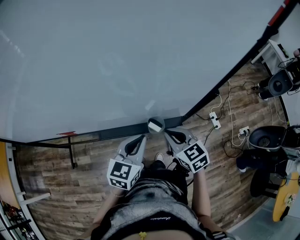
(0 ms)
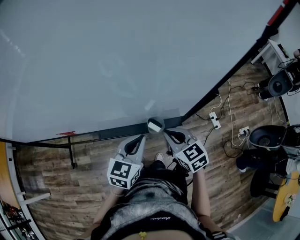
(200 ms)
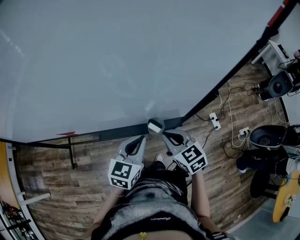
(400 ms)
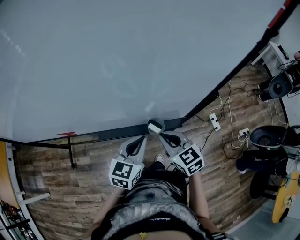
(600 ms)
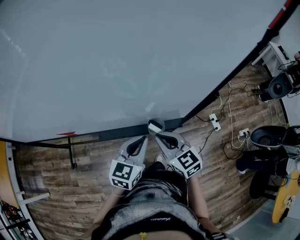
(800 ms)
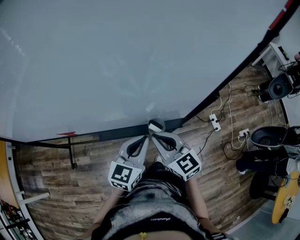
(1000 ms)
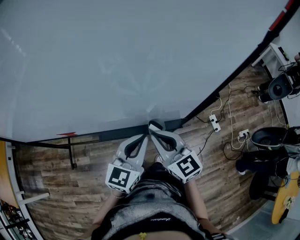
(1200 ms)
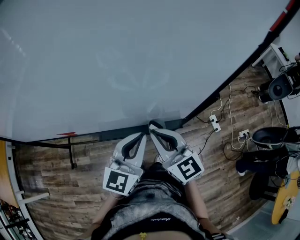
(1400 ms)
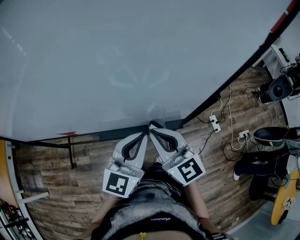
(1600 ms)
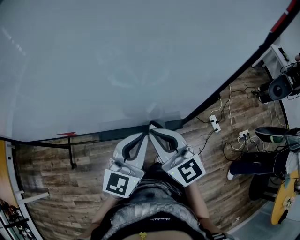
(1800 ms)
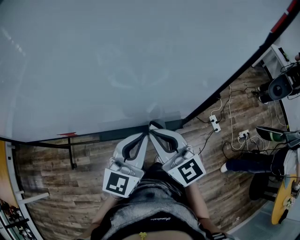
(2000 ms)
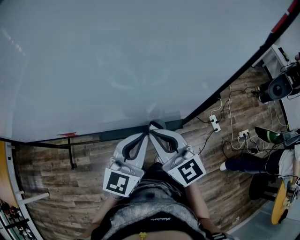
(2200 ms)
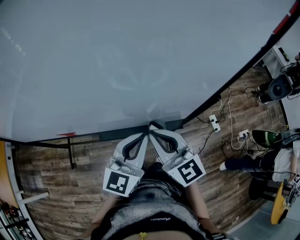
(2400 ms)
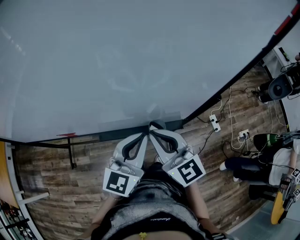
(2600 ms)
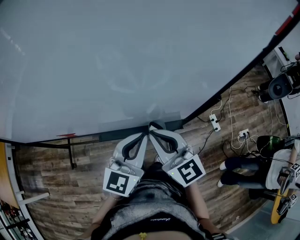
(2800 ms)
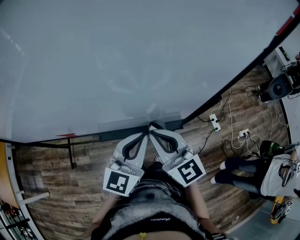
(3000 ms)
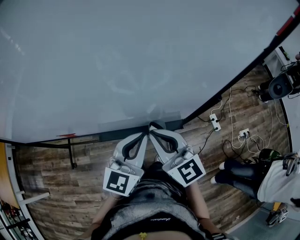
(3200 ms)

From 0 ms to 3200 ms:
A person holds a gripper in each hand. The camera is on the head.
From 0 ms to 1600 ms: The right gripper heads upward and to the left, covering approximately 15 cm, and turns by roughly 30 degrees, while the left gripper shifts approximately 10 cm upward.
From 1600 ms to 3200 ms: The grippers make only small movements.

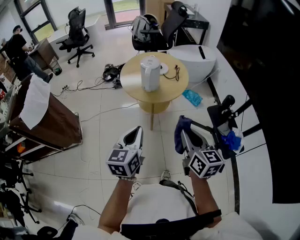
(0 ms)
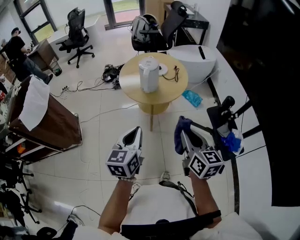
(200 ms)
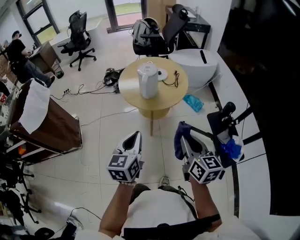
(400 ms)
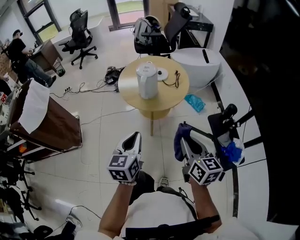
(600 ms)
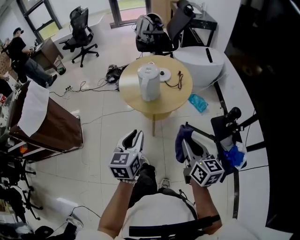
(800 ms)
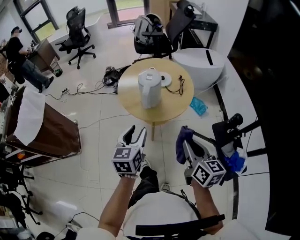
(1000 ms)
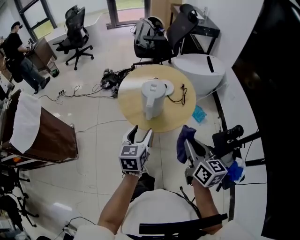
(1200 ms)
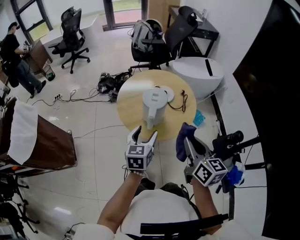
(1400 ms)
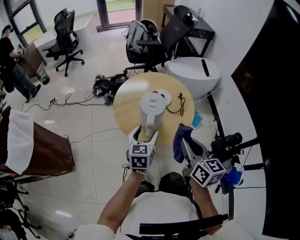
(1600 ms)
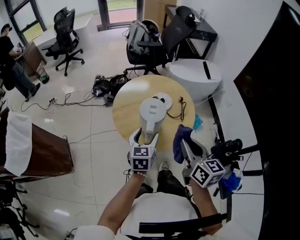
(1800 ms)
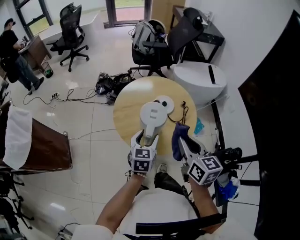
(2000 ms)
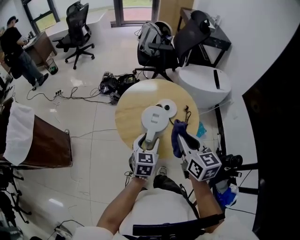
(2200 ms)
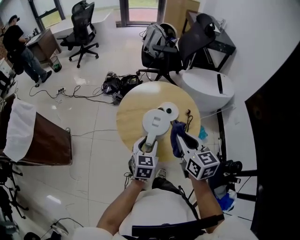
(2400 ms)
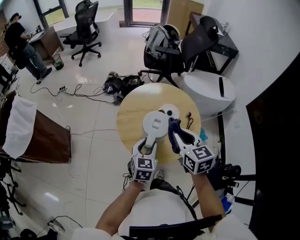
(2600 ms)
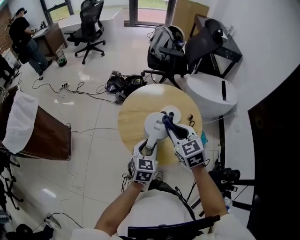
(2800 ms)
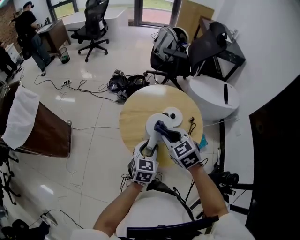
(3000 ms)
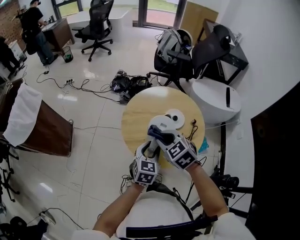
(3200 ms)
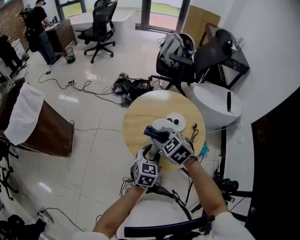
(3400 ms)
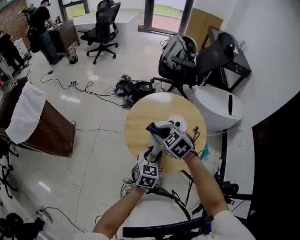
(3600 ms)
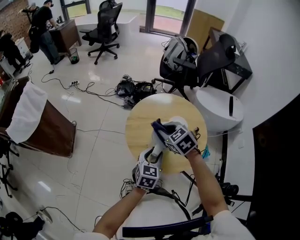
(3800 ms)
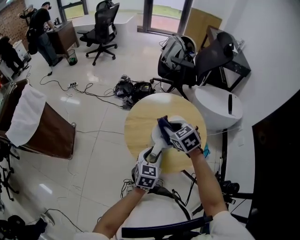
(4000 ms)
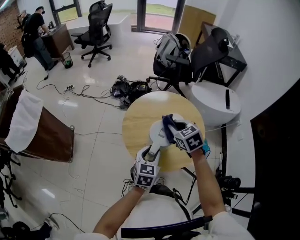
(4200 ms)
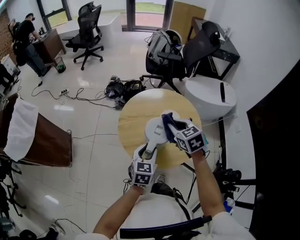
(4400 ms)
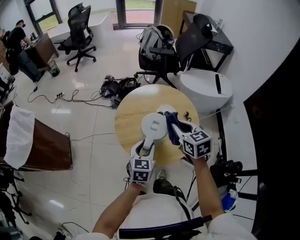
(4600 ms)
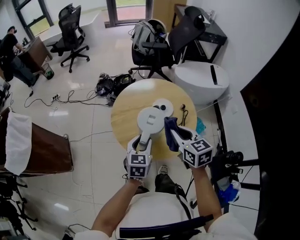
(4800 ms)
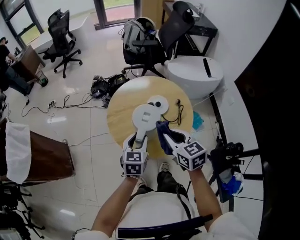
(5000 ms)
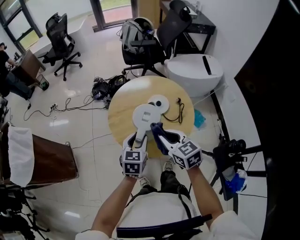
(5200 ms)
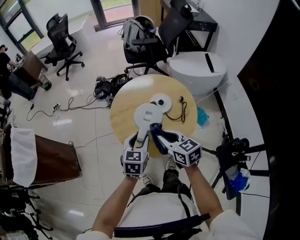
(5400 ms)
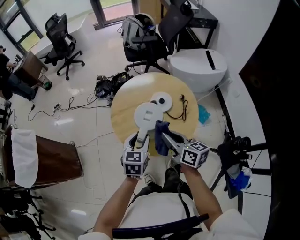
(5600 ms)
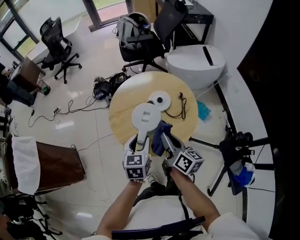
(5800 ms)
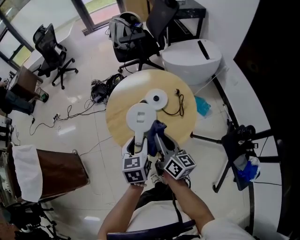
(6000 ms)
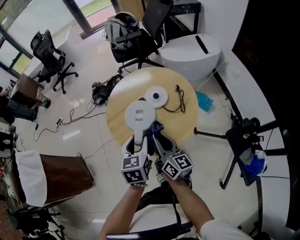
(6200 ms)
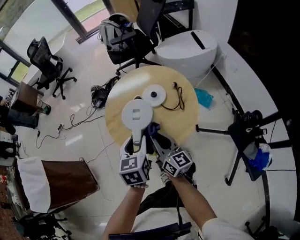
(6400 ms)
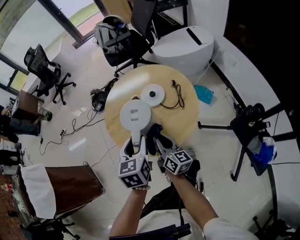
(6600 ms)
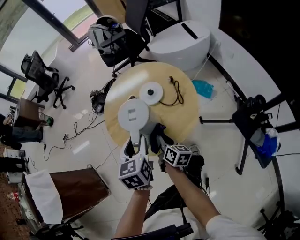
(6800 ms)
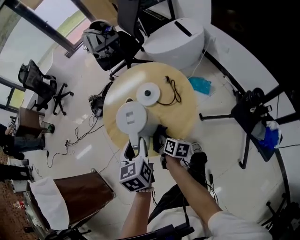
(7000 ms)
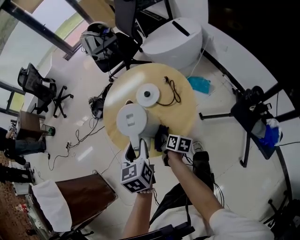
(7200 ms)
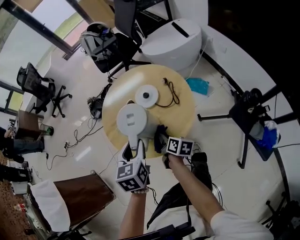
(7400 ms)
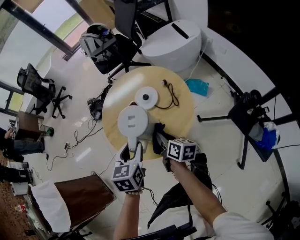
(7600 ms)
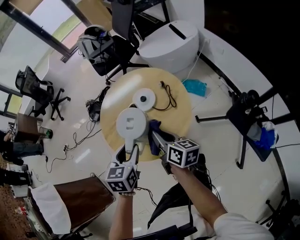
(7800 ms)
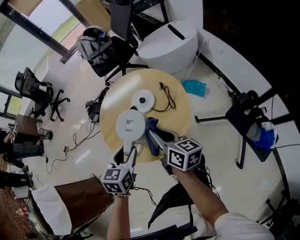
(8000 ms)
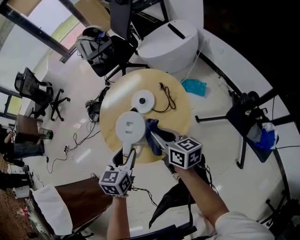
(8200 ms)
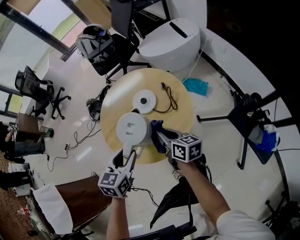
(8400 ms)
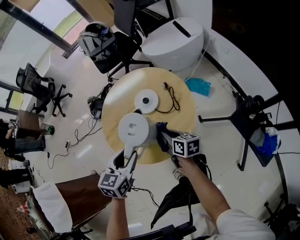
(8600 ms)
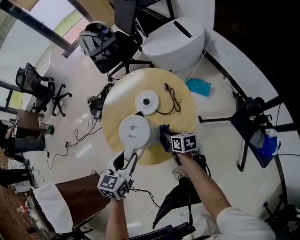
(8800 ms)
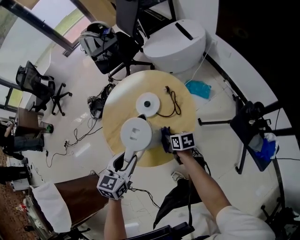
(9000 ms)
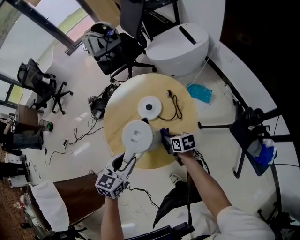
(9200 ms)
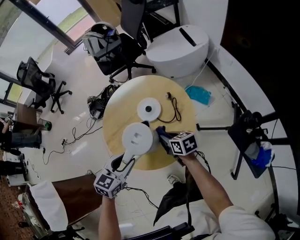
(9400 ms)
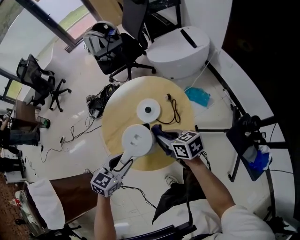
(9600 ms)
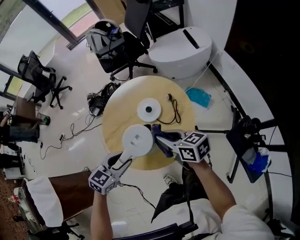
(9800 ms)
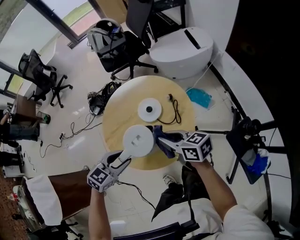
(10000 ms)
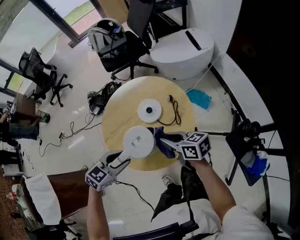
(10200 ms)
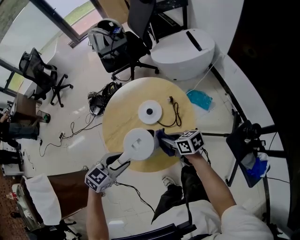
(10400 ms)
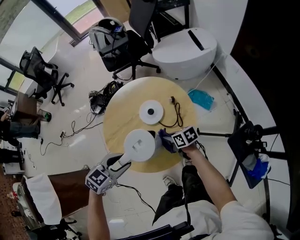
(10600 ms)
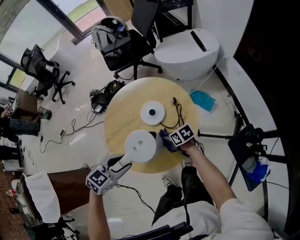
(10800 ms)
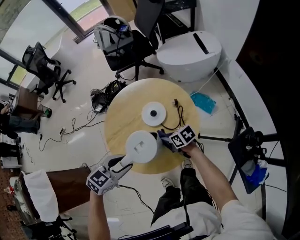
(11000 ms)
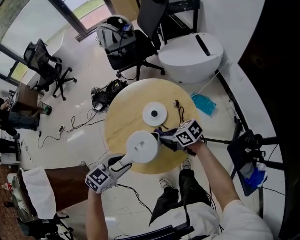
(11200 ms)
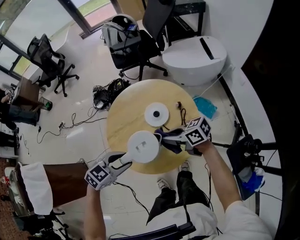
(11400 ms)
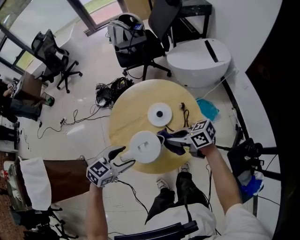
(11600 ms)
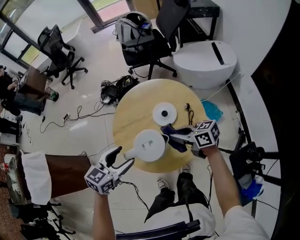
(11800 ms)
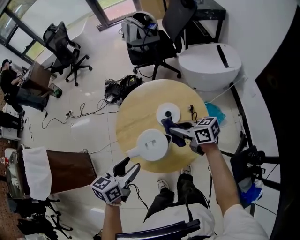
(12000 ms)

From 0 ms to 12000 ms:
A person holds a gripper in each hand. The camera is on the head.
From 0 ms to 1600 ms: The two grippers go roughly 30 cm forward. The left gripper opens its fingers.
From 1600 ms to 3000 ms: The left gripper ends up some 5 cm from where it was, and closes up, while the right gripper moves forward, to the left and downward, roughly 20 cm, and swivels some 60 degrees.
From 3000 ms to 4400 ms: The right gripper heads to the right and forward, covering roughly 10 cm.
From 4400 ms to 6000 ms: The right gripper shifts about 10 cm backward, and angles its fingers upward, by approximately 40 degrees.
From 6000 ms to 7600 ms: The right gripper is displaced downward by roughly 10 cm, and changes its angle by about 30 degrees.
From 7600 ms to 9000 ms: The left gripper turns by approximately 20 degrees, while the right gripper travels downward by approximately 10 cm, and turns by approximately 30 degrees.
From 9000 ms to 10400 ms: The right gripper travels upward by roughly 10 cm, and turns by about 30 degrees. The left gripper changes its angle by about 20 degrees.
From 10400 ms to 12000 ms: The left gripper shifts by about 5 cm, and turns by about 50 degrees; the right gripper shifts approximately 10 cm upward, and changes its angle by some 20 degrees.

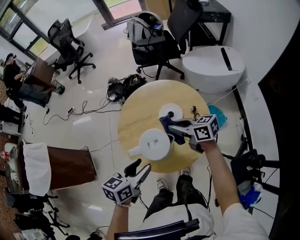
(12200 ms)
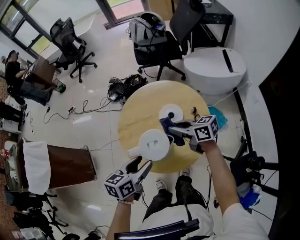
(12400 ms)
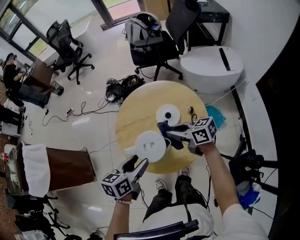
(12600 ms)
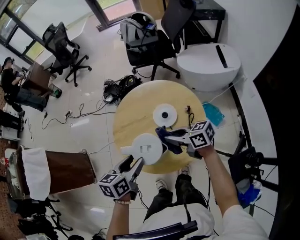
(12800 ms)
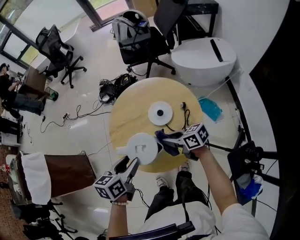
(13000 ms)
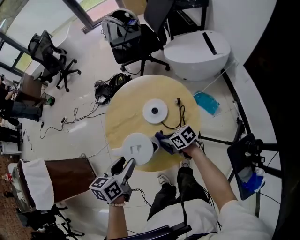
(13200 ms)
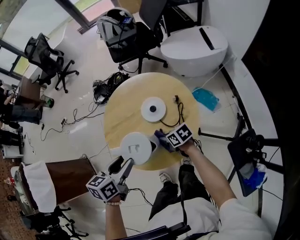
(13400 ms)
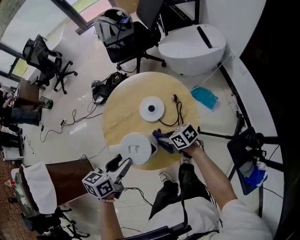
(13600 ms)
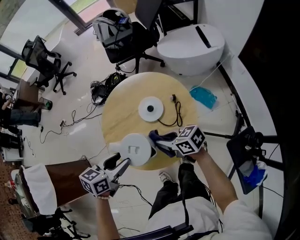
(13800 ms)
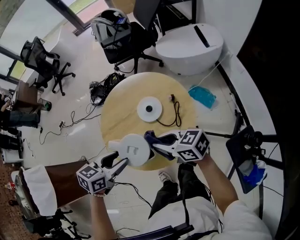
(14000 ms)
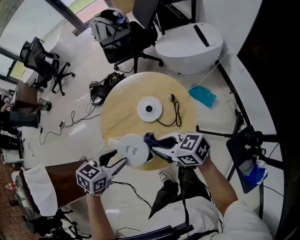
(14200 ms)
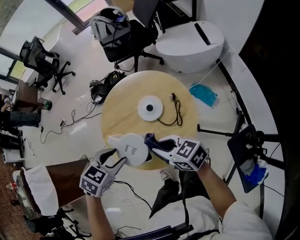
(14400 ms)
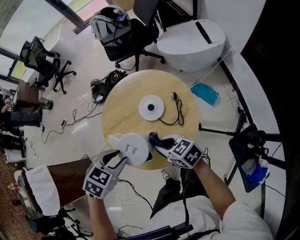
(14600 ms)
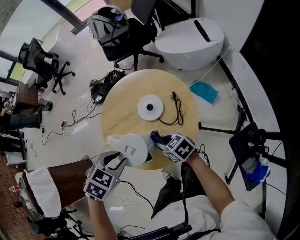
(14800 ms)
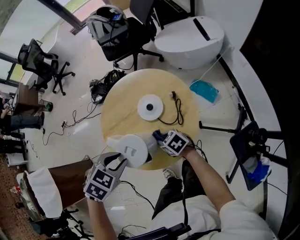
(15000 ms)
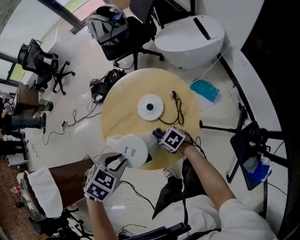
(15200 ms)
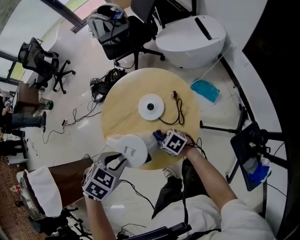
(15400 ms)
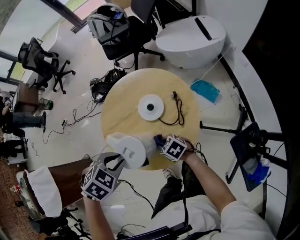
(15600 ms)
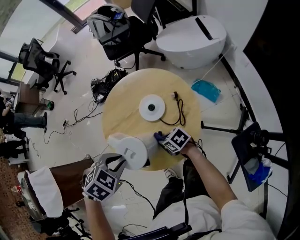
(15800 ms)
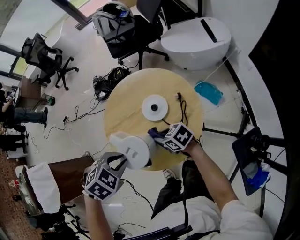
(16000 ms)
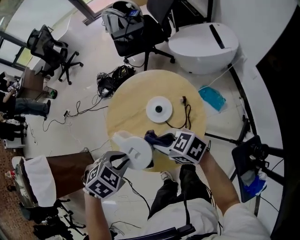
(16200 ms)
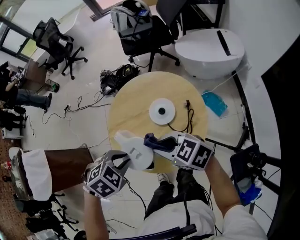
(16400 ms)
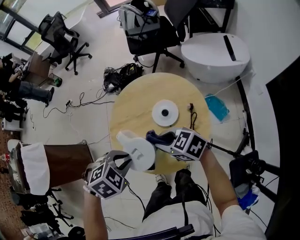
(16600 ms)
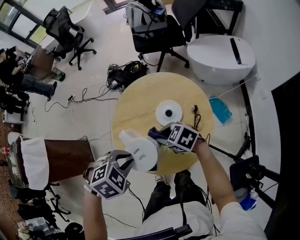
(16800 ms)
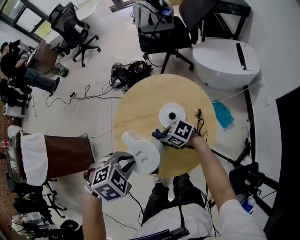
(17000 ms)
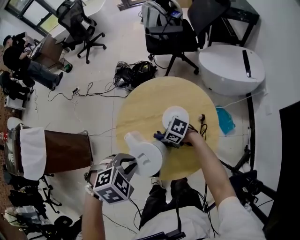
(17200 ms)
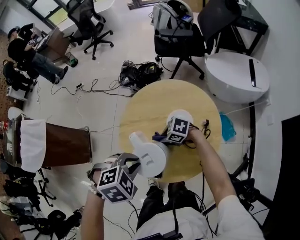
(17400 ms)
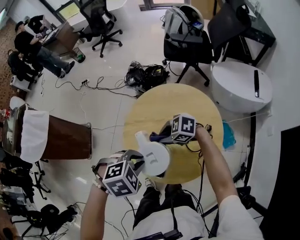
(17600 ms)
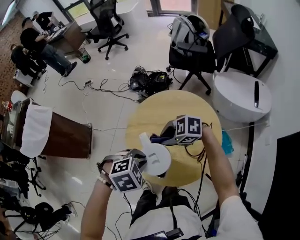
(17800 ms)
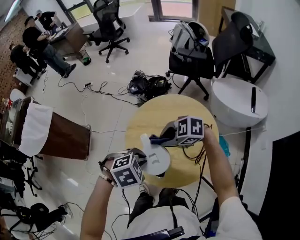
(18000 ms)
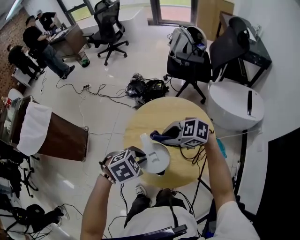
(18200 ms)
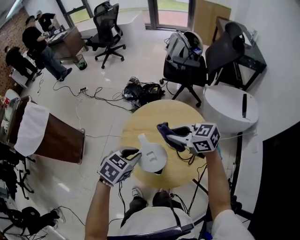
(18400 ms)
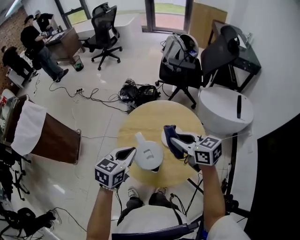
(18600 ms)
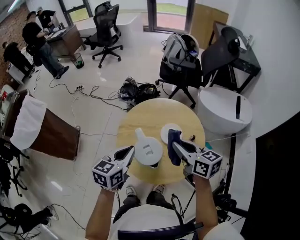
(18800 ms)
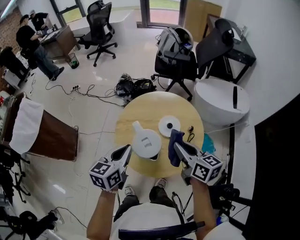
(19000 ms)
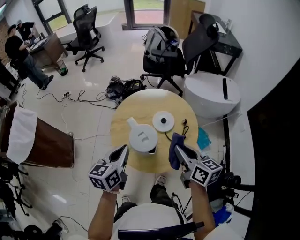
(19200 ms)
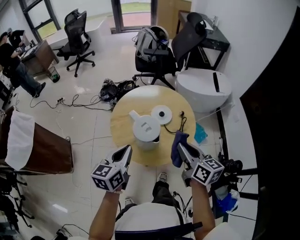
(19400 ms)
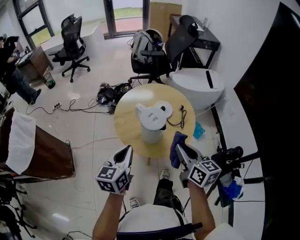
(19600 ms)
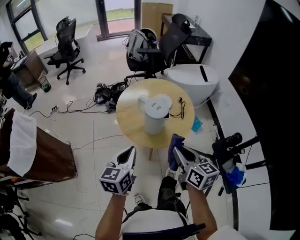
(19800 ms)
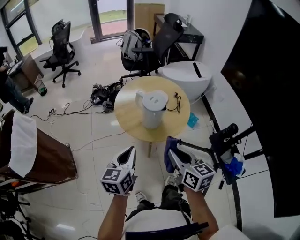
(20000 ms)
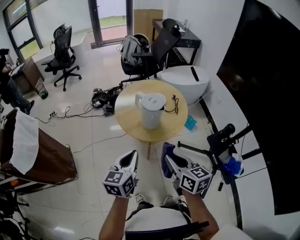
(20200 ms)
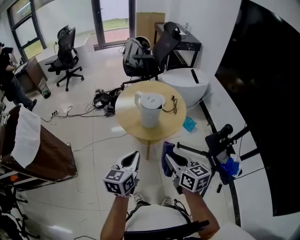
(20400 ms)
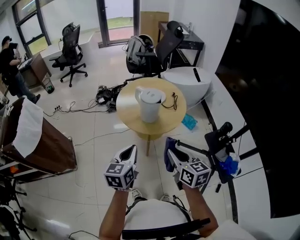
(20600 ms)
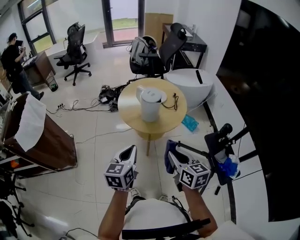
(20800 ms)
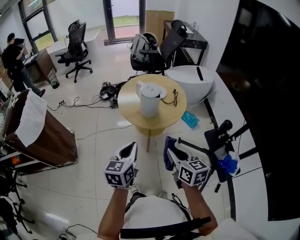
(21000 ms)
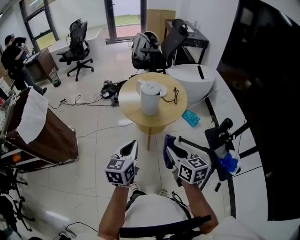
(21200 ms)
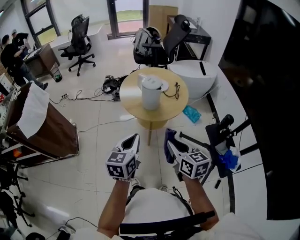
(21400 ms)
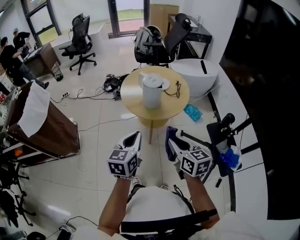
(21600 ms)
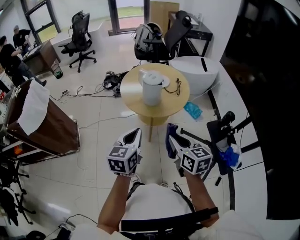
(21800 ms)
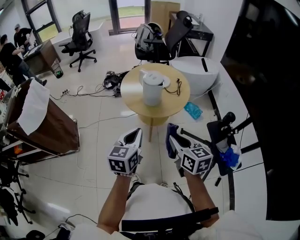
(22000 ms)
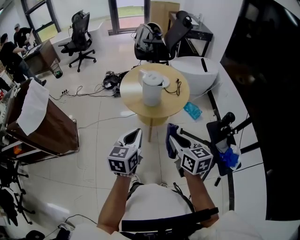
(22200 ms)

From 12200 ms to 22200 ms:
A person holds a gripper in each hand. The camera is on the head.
From 12200 ms to 13600 ms: The right gripper is displaced downward and backward by approximately 15 cm.
From 13600 ms to 15000 ms: The left gripper points its fingers approximately 30 degrees further downward, and closes; the right gripper reaches roughly 15 cm upward, then returns, and rotates approximately 20 degrees.
From 15000 ms to 16400 ms: The right gripper travels upward by approximately 20 cm, and turns by some 30 degrees.
From 16400 ms to 18000 ms: The right gripper travels downward and back again, some 20 cm each way, and changes its angle by about 50 degrees.
From 18000 ms to 19400 ms: The left gripper changes place by approximately 10 cm, and tips its fingers upward by about 50 degrees. The right gripper changes place by about 20 cm, and turns by roughly 100 degrees.
From 19400 ms to 20800 ms: The two grippers go some 25 cm backward.
From 20800 ms to 22200 ms: The grippers stay close to where they were, moving slightly.
